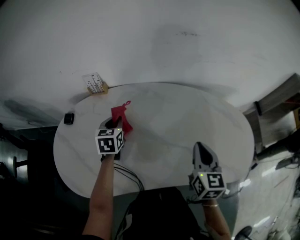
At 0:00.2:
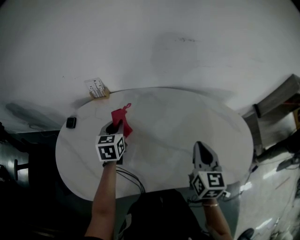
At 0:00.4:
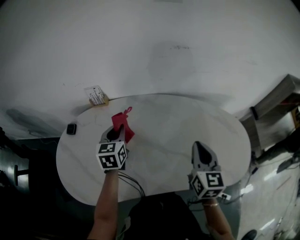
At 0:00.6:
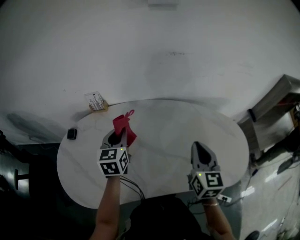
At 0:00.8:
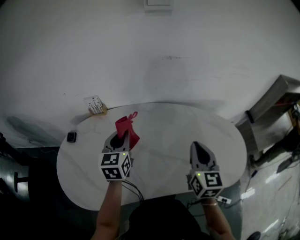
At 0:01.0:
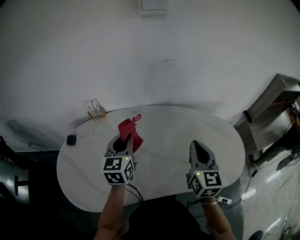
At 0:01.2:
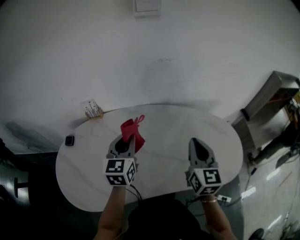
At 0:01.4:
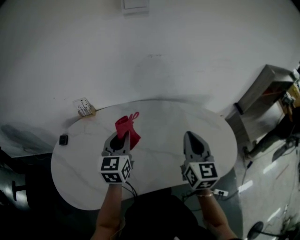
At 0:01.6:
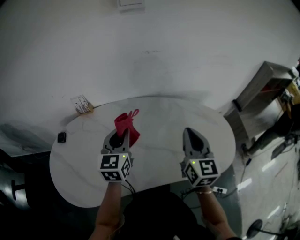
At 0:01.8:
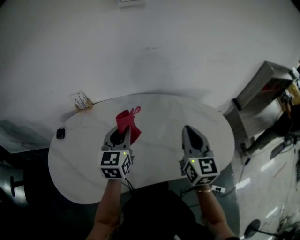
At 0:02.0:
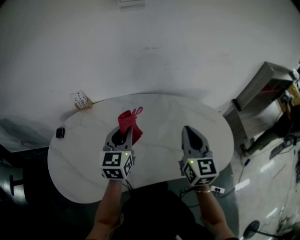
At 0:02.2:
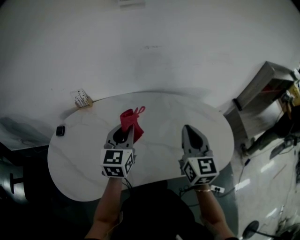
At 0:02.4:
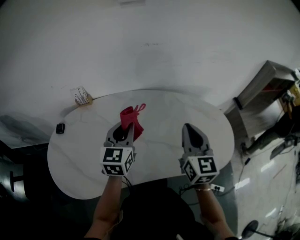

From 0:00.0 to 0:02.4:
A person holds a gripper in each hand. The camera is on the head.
From 0:00.0 to 0:01.2: The right gripper heads upward, covering about 10 cm, while the left gripper moves upward and to the right, some 20 cm, and swivels approximately 30 degrees.
From 0:01.2 to 0:02.4: The left gripper is displaced to the right by about 5 cm.

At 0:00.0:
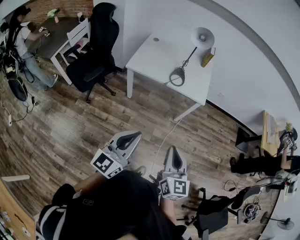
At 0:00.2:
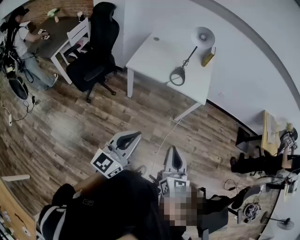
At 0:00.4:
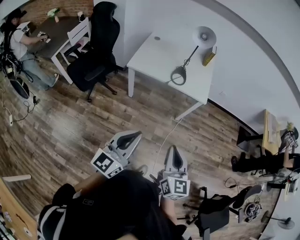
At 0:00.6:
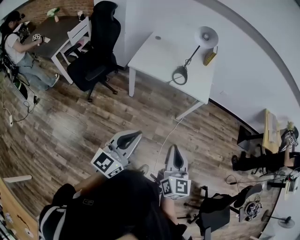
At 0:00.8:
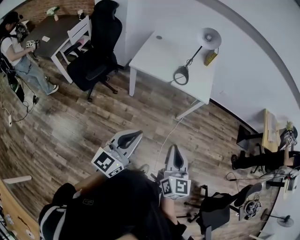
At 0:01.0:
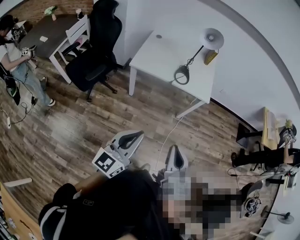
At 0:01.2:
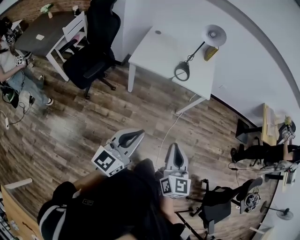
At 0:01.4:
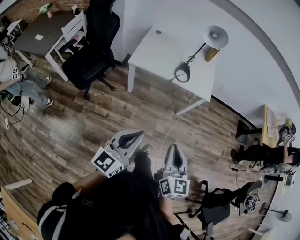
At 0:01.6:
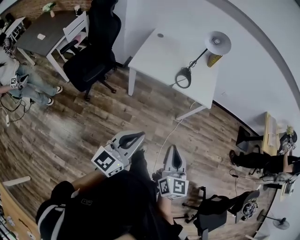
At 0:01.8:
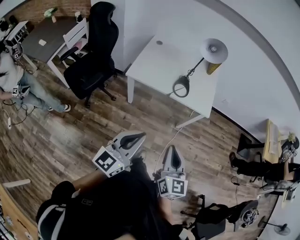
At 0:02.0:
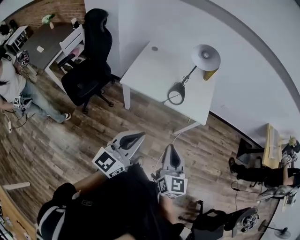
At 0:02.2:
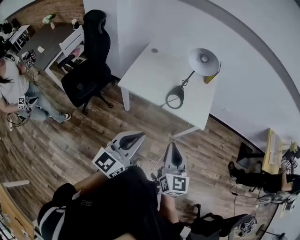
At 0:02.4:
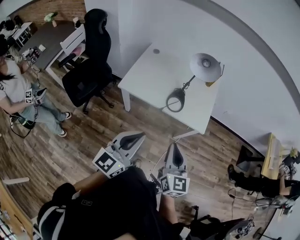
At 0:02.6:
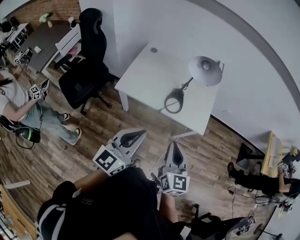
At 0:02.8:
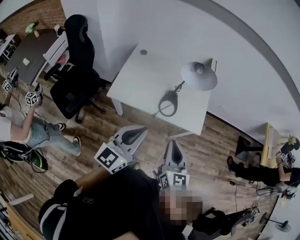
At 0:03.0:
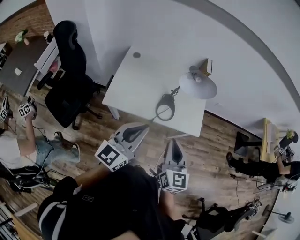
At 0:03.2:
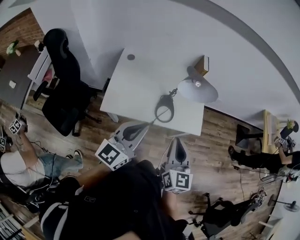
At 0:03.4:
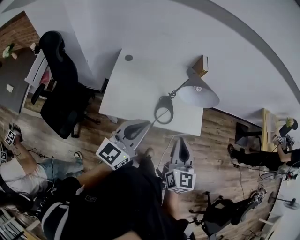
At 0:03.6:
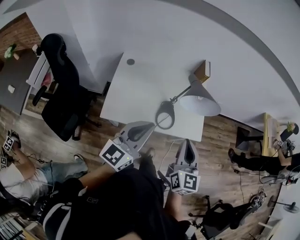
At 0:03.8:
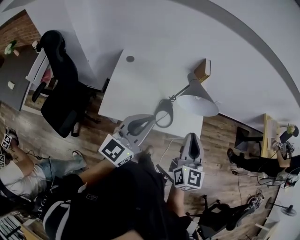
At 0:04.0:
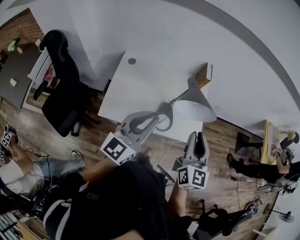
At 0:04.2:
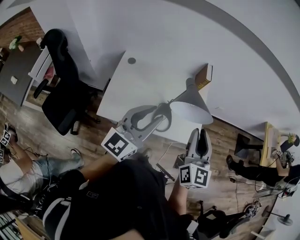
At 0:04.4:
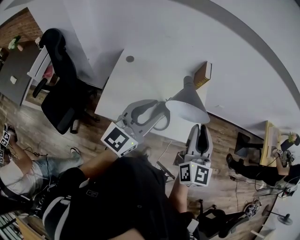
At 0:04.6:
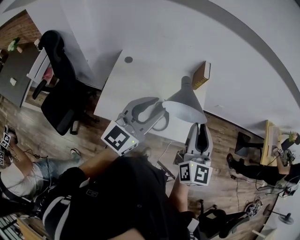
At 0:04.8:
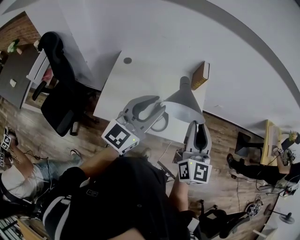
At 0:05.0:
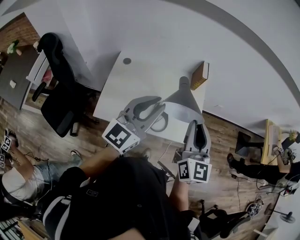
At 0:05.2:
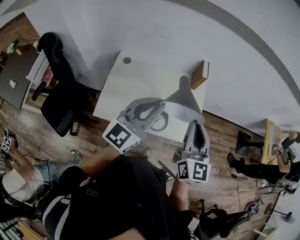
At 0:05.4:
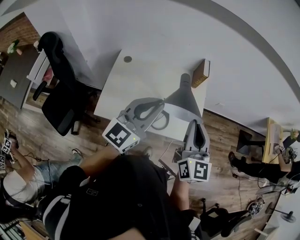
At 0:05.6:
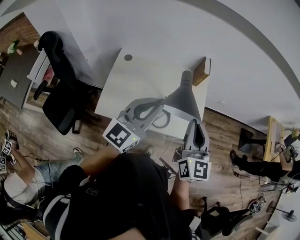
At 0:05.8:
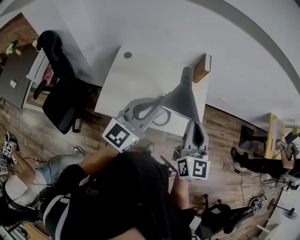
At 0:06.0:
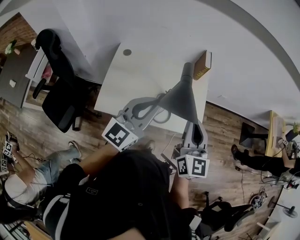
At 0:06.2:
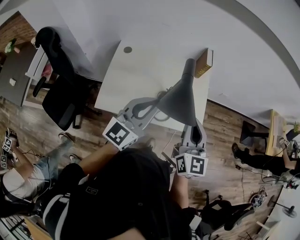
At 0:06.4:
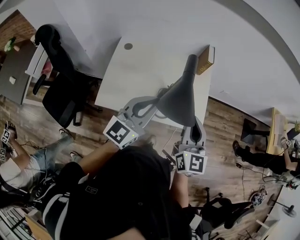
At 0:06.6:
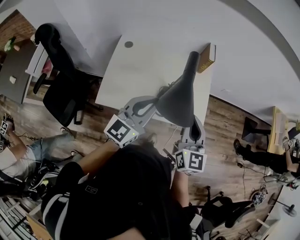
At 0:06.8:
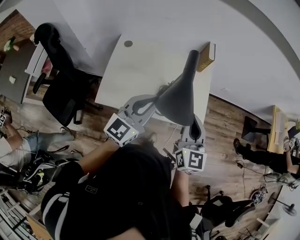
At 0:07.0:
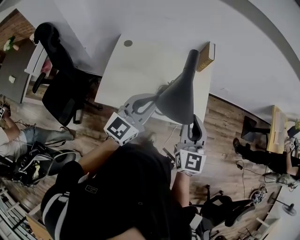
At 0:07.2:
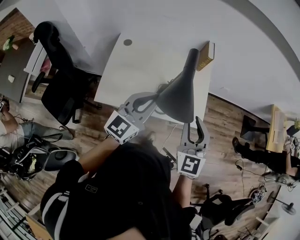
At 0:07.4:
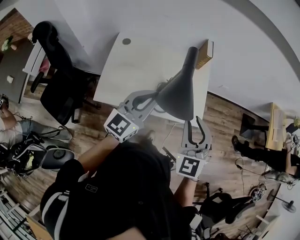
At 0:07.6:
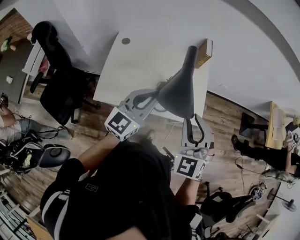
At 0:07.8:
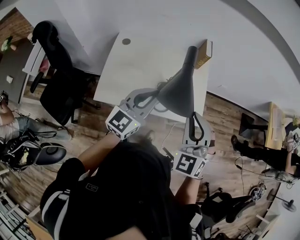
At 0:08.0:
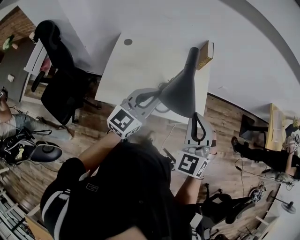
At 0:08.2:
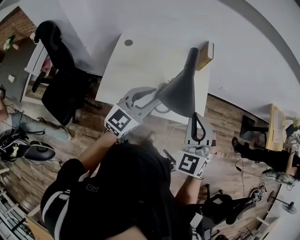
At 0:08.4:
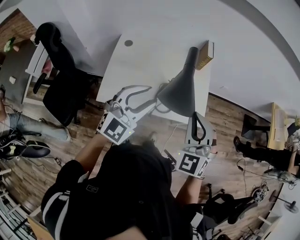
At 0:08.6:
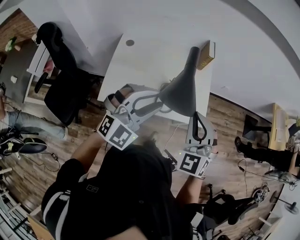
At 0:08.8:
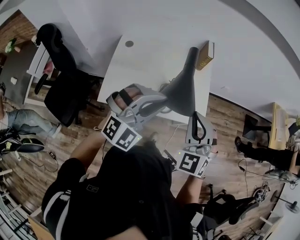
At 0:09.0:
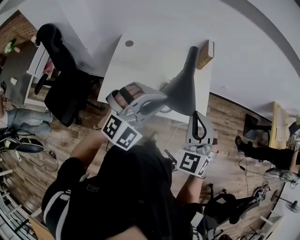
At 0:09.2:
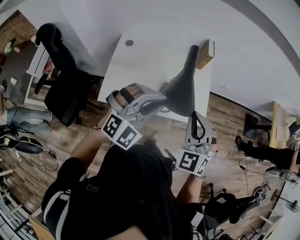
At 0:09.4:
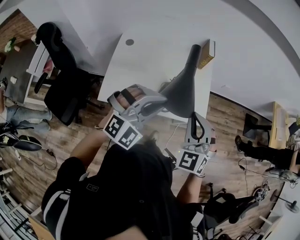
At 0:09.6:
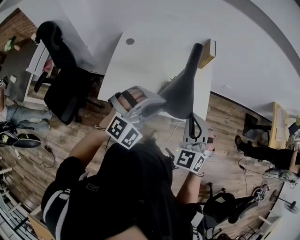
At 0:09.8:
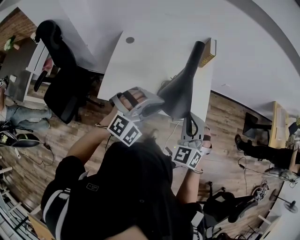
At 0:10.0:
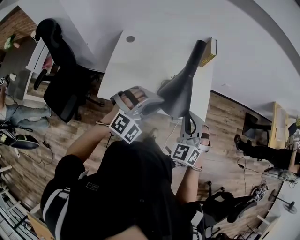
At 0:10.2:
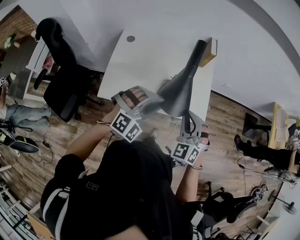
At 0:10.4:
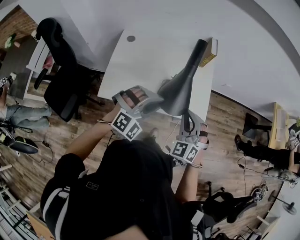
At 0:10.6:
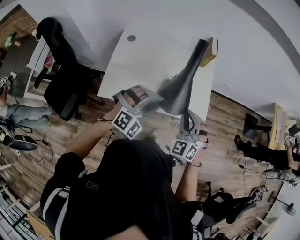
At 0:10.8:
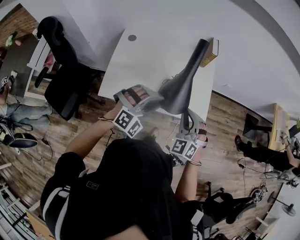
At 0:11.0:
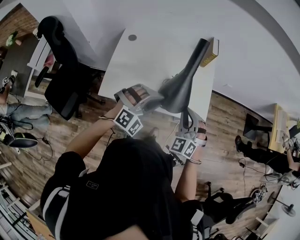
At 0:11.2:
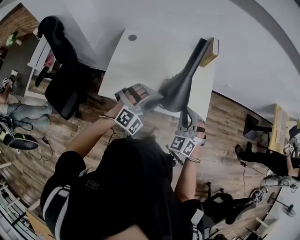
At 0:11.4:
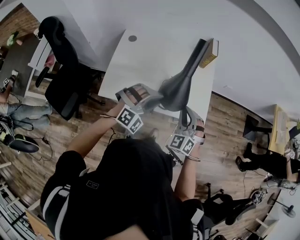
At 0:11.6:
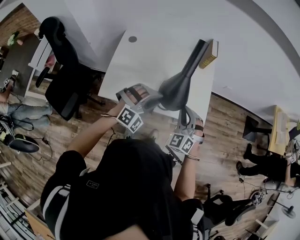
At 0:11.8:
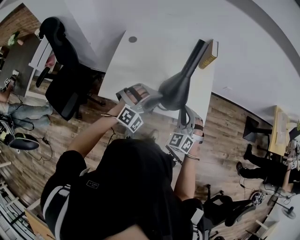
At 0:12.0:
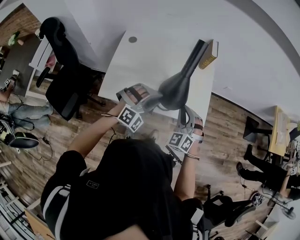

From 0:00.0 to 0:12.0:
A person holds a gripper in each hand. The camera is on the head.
From 0:00.0 to 0:01.6: The right gripper moves to the left and forward, about 10 cm. Meanwhile the left gripper shifts roughly 10 cm forward and to the left.
From 0:01.6 to 0:03.0: The two grippers go some 35 cm forward.
From 0:03.0 to 0:04.4: The left gripper travels forward by approximately 20 cm, and opens its fingers. The right gripper travels forward and upward by approximately 20 cm.
From 0:04.4 to 0:06.0: The left gripper closes its fingers.
From 0:06.0 to 0:07.6: The left gripper travels downward by approximately 5 cm. Meanwhile the right gripper twists approximately 50 degrees counterclockwise, seen from behind, and opens.
From 0:07.6 to 0:09.0: The right gripper closes up. Meanwhile the left gripper changes place by some 5 cm, twists approximately 60 degrees clockwise, seen from behind, and opens and closes again.
From 0:09.0 to 0:10.4: The grippers both shift downward by roughly 10 cm.
From 0:10.4 to 0:12.0: Both grippers travel together downward, about 5 cm.

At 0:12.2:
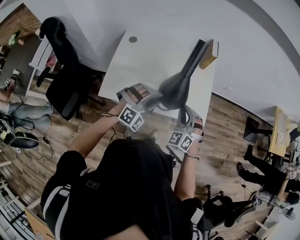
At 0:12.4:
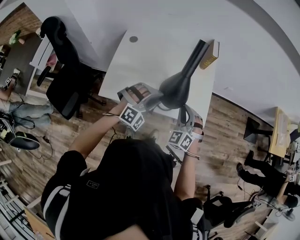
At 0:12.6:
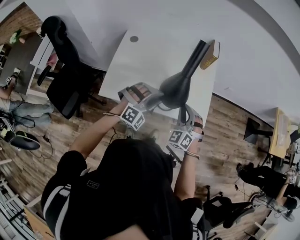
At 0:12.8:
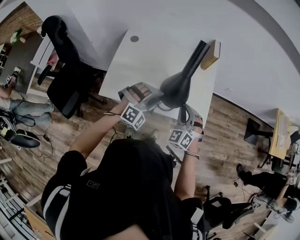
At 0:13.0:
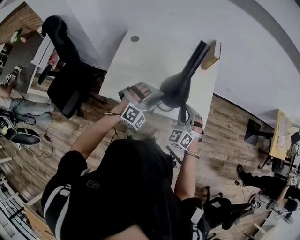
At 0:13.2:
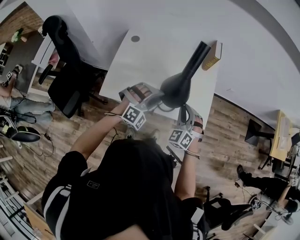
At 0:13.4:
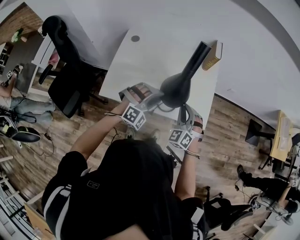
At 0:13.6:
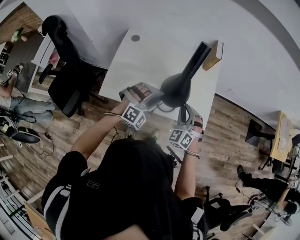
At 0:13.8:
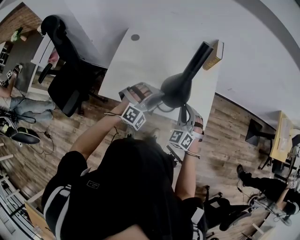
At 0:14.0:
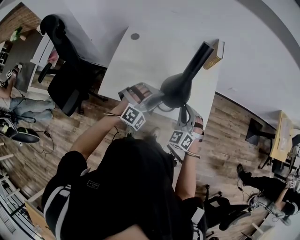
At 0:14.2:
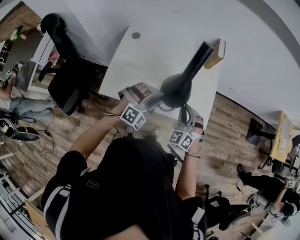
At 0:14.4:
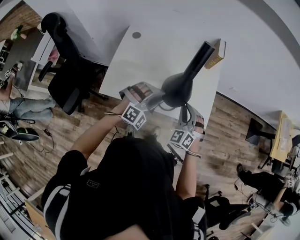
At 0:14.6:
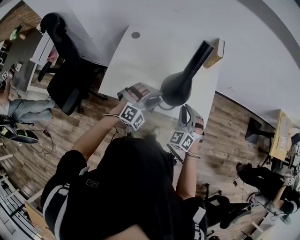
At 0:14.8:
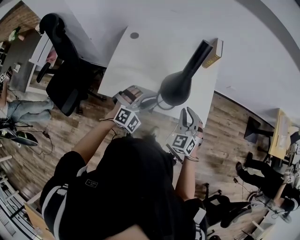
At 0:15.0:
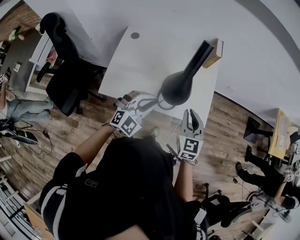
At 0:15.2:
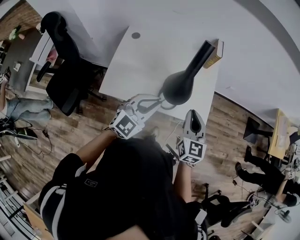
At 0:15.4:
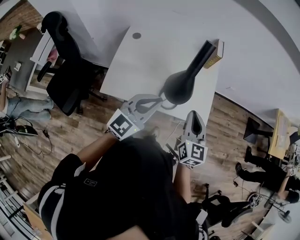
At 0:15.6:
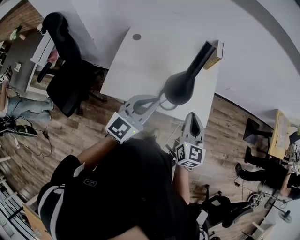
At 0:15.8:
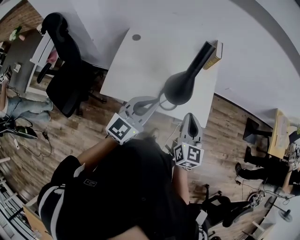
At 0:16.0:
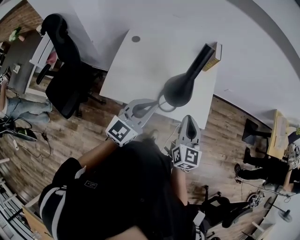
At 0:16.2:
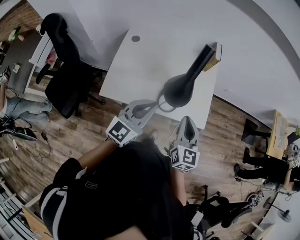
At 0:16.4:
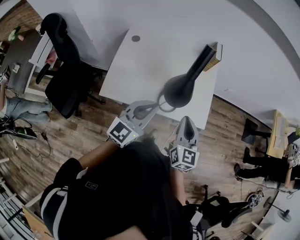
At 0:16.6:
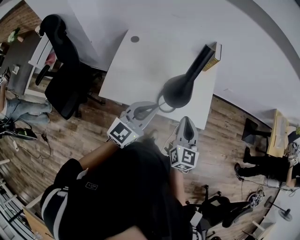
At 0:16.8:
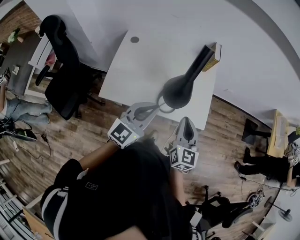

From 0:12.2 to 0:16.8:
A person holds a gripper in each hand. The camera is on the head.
From 0:12.2 to 0:13.8: The grippers stay close to where they were, moving slightly.
From 0:13.8 to 0:15.2: The right gripper heads upward, covering roughly 10 cm, and rolls clockwise, seen from behind, by some 50 degrees. Meanwhile the left gripper shifts roughly 10 cm upward and backward, twists about 50 degrees counterclockwise, seen from behind, and closes.
From 0:15.2 to 0:16.8: The left gripper changes its angle by roughly 20 degrees.

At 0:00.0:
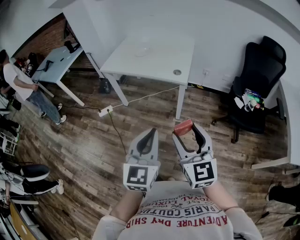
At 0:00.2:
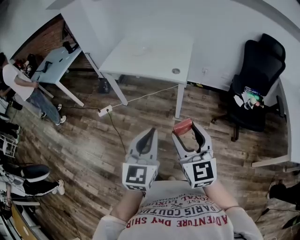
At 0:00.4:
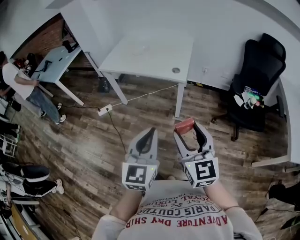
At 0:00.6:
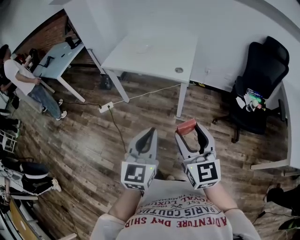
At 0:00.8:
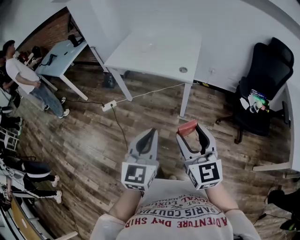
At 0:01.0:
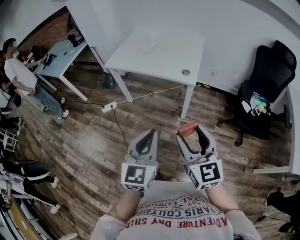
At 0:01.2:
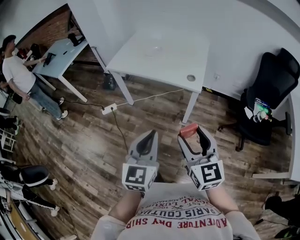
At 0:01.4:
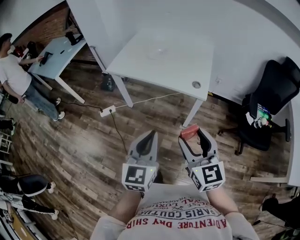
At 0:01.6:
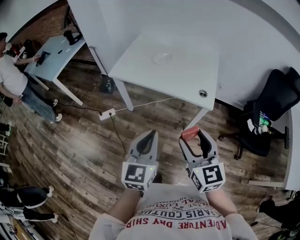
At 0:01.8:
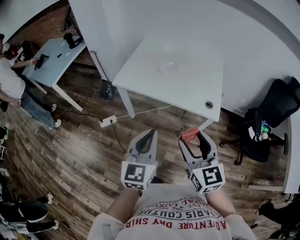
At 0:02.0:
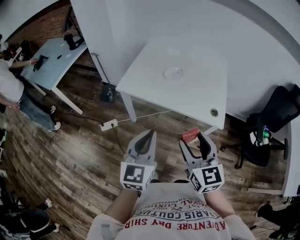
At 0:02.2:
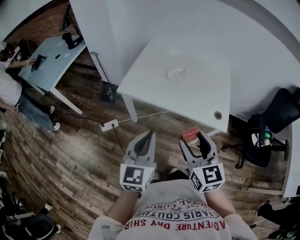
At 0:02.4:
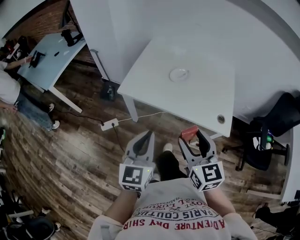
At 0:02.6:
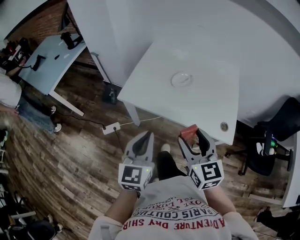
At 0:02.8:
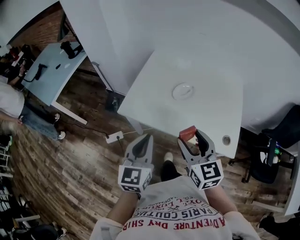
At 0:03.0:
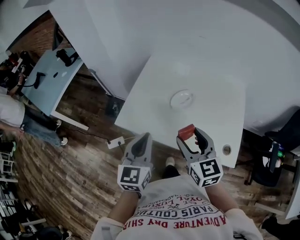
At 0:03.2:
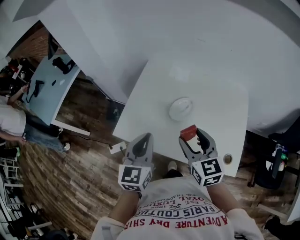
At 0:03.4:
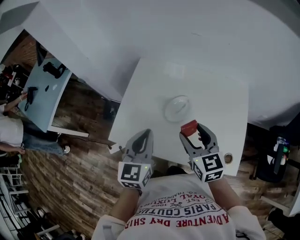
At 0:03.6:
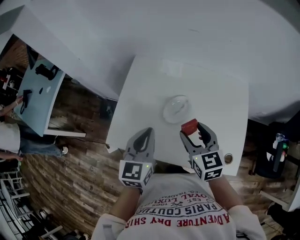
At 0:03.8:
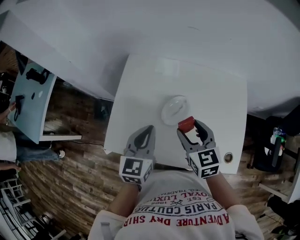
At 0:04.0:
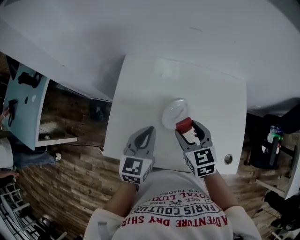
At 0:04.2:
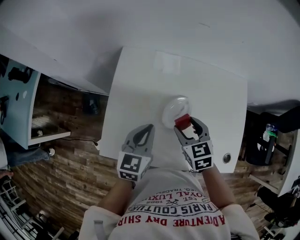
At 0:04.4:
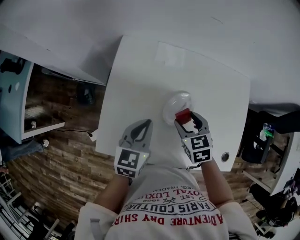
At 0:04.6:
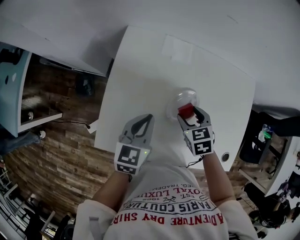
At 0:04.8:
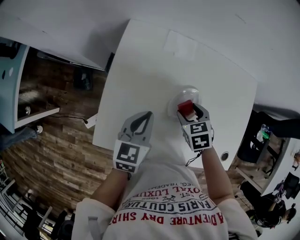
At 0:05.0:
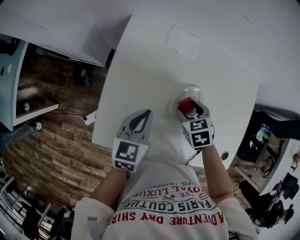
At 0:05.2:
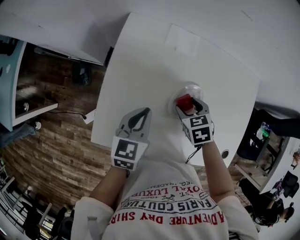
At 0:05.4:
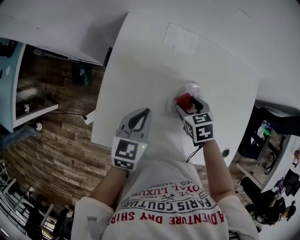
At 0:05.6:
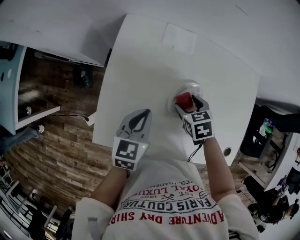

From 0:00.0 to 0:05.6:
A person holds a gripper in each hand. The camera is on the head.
From 0:00.0 to 0:01.4: Both grippers move forward and to the left, some 20 cm.
From 0:01.4 to 0:02.8: The two grippers travel together, forward and to the left, approximately 40 cm.
From 0:02.8 to 0:04.2: The right gripper travels forward and downward by about 35 cm, and rotates some 30 degrees. The left gripper shifts about 30 cm forward, and changes its angle by approximately 30 degrees.
From 0:04.2 to 0:05.6: The left gripper is displaced downward by about 5 cm; the right gripper travels downward by some 10 cm, and swivels roughly 20 degrees.
